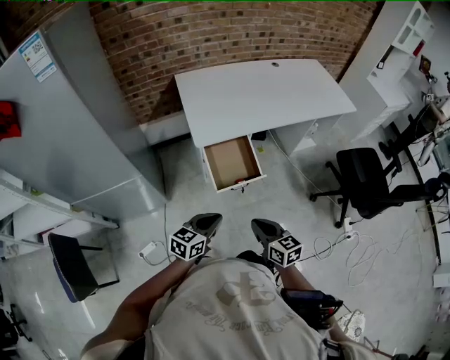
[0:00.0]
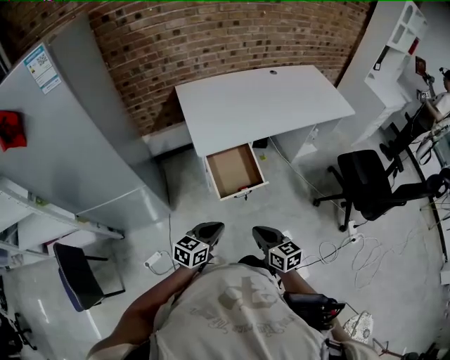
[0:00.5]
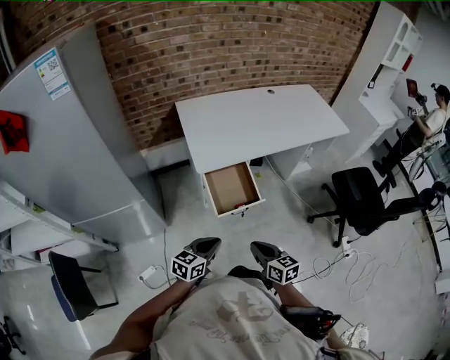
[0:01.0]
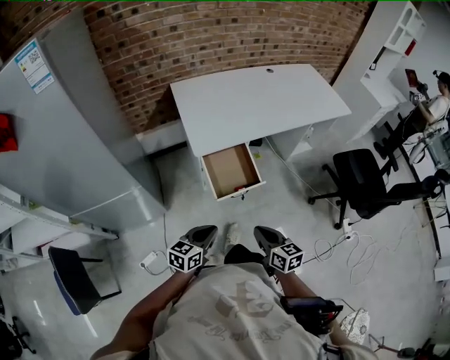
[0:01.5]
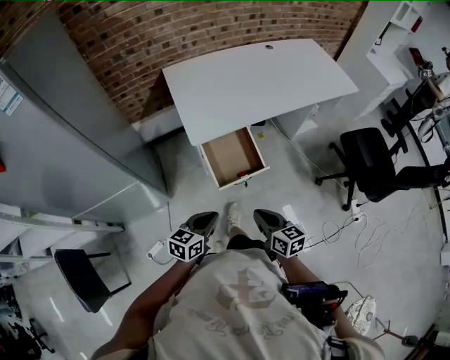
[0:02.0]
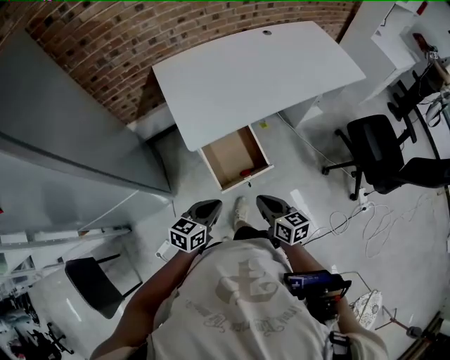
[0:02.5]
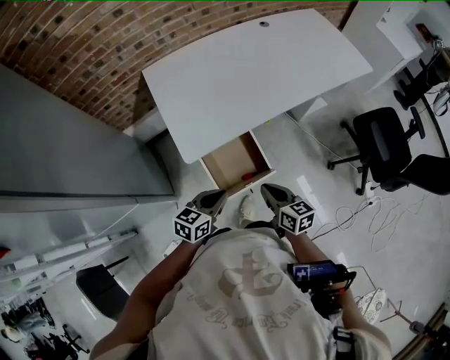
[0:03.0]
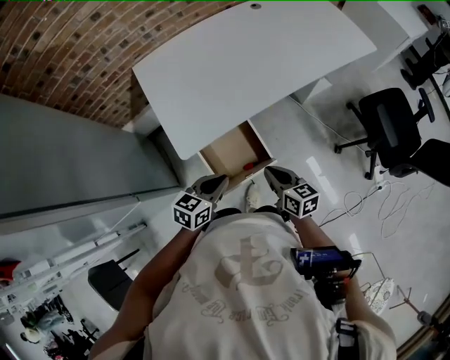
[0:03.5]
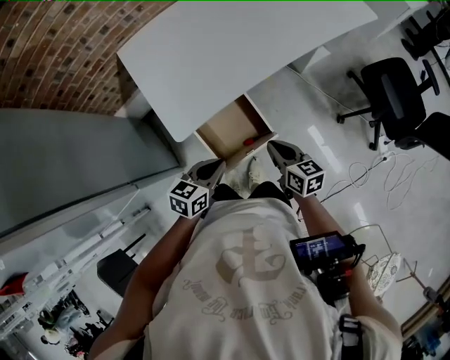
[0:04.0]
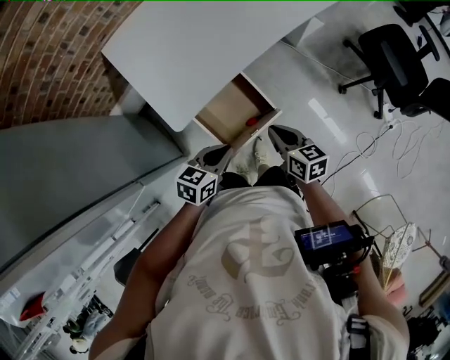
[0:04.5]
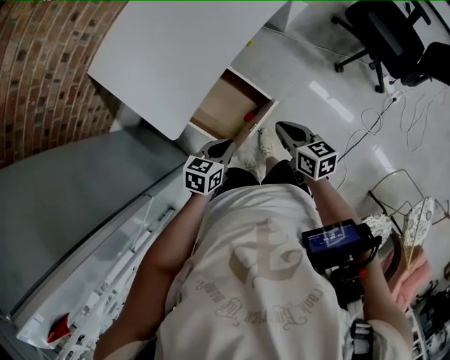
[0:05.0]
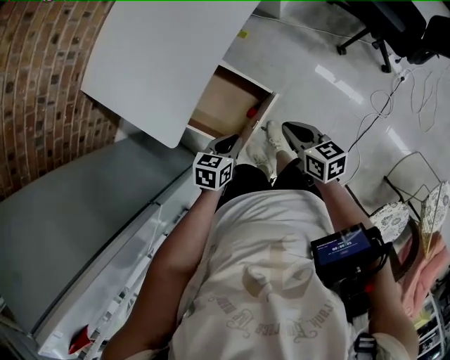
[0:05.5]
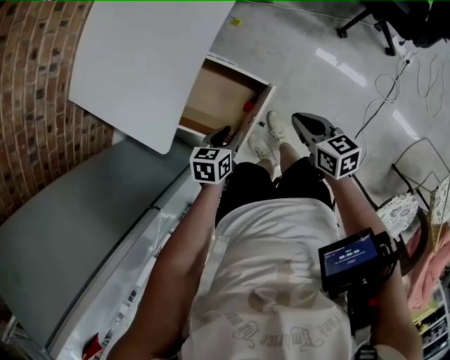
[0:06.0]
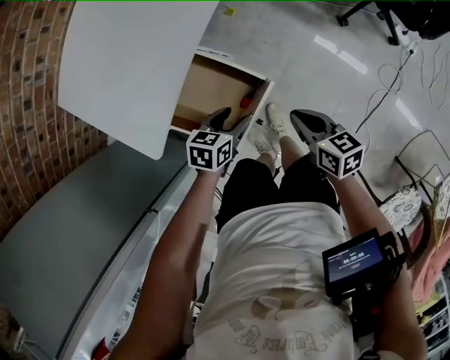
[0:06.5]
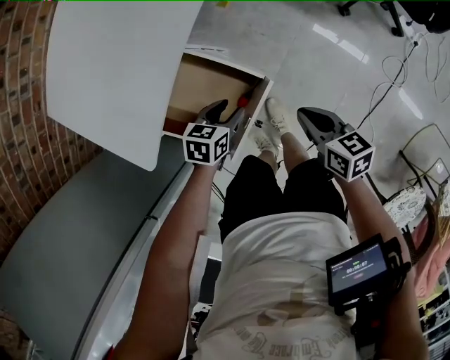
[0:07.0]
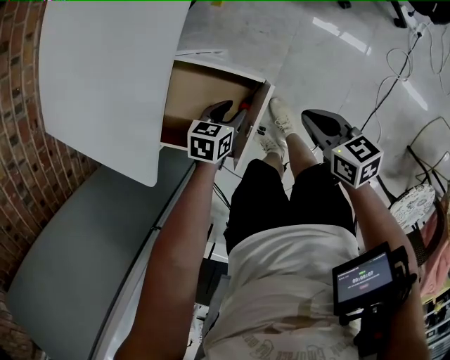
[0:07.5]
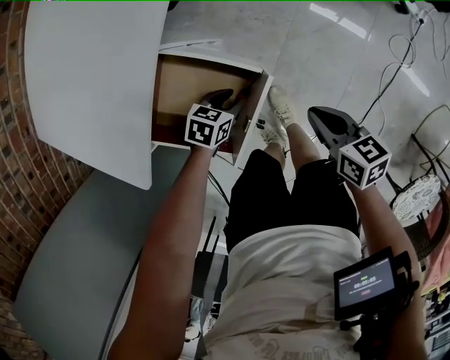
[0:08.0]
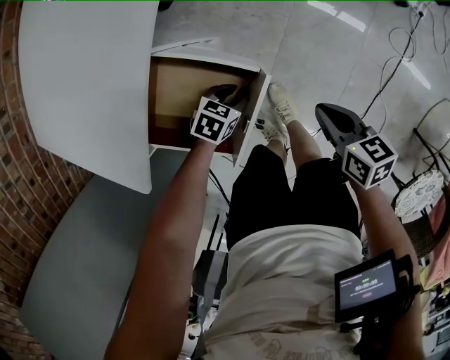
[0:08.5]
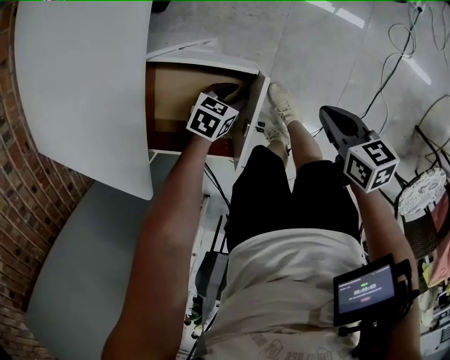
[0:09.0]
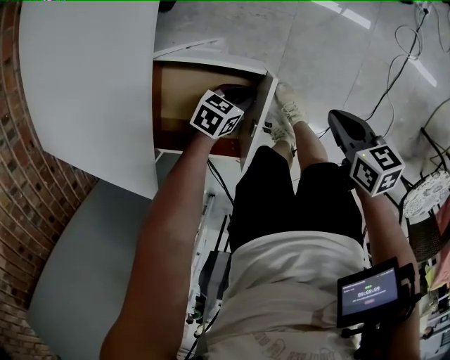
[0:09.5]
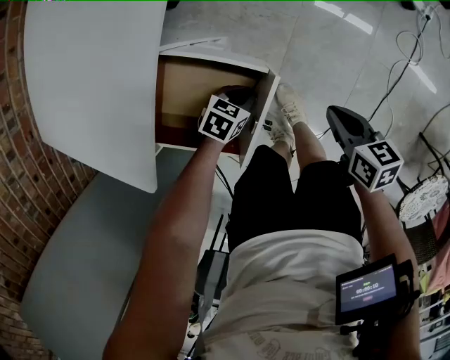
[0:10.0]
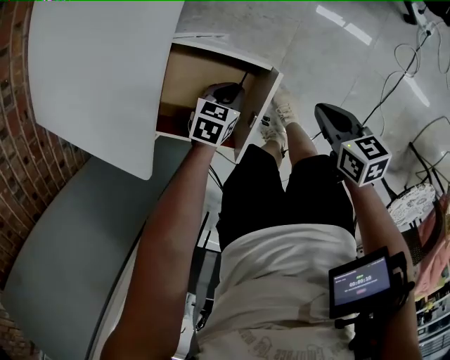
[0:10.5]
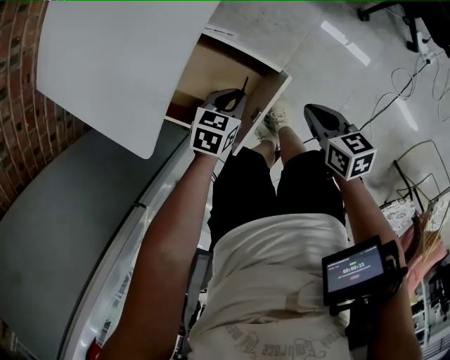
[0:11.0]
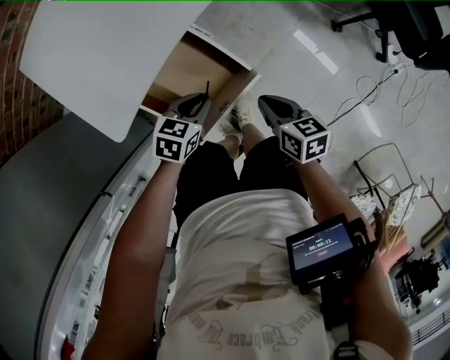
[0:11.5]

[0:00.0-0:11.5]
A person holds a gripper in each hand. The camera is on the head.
0:00.0 to 0:02.0: The right gripper moves approximately 5 cm. Meanwhile the left gripper moves approximately 5 cm.
0:02.0 to 0:04.0: Both grippers move forward, some 25 cm.
0:04.0 to 0:06.0: The left gripper goes roughly 20 cm downward, swivels approximately 30 degrees, and opens. The right gripper is displaced downward and to the right by roughly 15 cm, and turns by about 20 degrees.
0:06.0 to 0:07.5: The right gripper travels downward by approximately 10 cm, while the left gripper shifts about 15 cm downward and forward.
0:07.5 to 0:09.5: The right gripper moves about 5 cm. The left gripper is displaced downward by about 5 cm, changes its angle by roughly 30 degrees, and closes.
0:09.5 to 0:11.5: The right gripper ends up some 10 cm from where it was, and swivels approximately 20 degrees, while the left gripper moves upward, approximately 15 cm, and changes its angle by some 40 degrees.

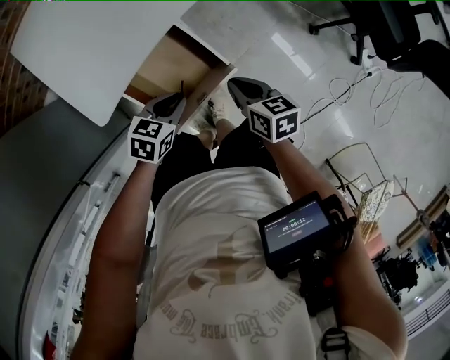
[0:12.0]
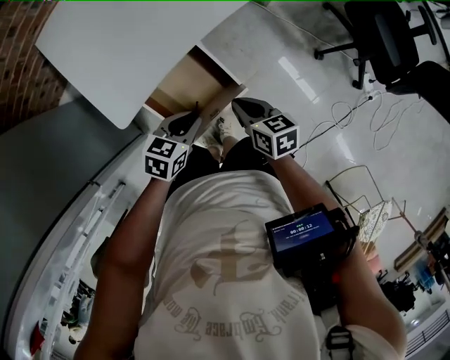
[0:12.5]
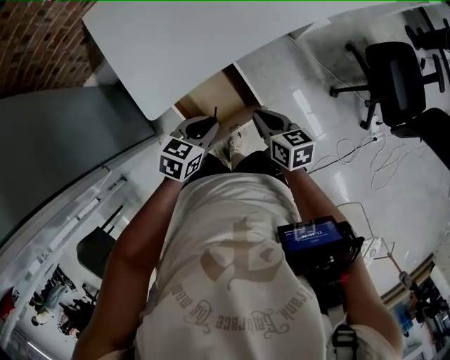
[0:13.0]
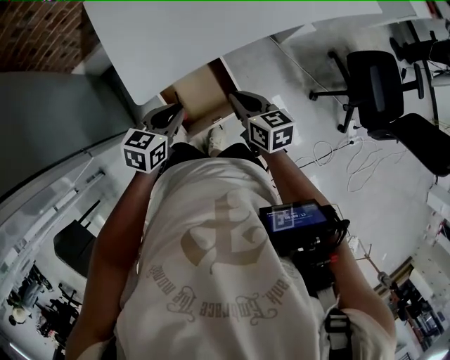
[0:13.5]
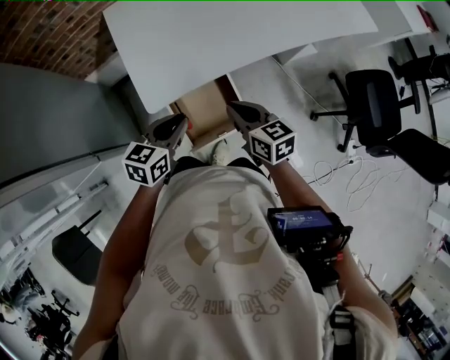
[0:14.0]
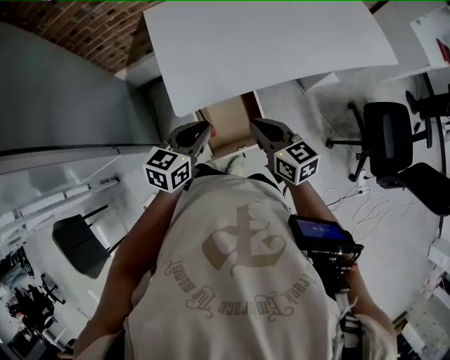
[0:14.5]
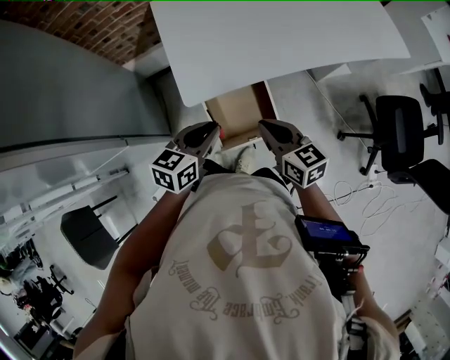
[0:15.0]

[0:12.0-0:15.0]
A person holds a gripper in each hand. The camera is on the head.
0:12.0 to 0:13.5: The left gripper shifts about 15 cm upward and to the left, and swivels approximately 30 degrees; the right gripper shifts some 10 cm to the left and upward, and changes its angle by some 20 degrees.
0:13.5 to 0:15.0: The right gripper shifts approximately 10 cm upward and to the left; the left gripper shifts about 10 cm upward.

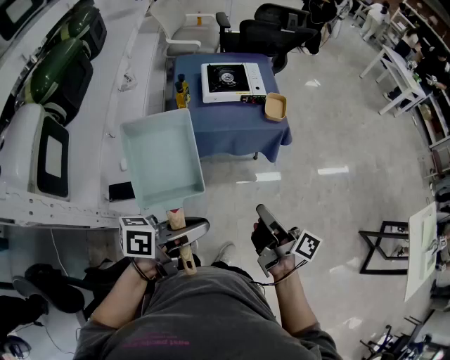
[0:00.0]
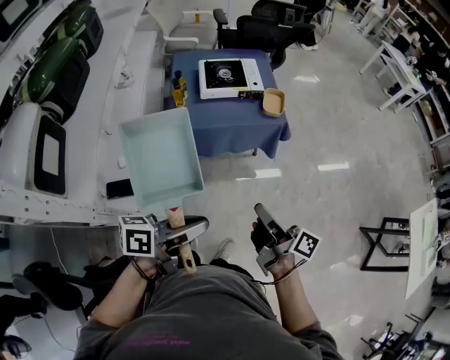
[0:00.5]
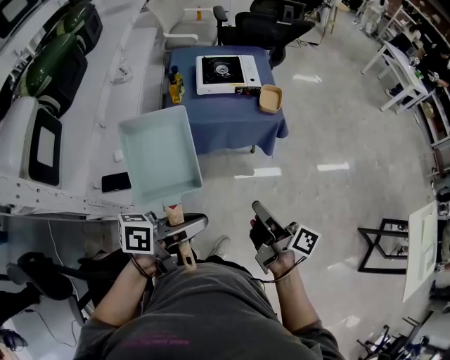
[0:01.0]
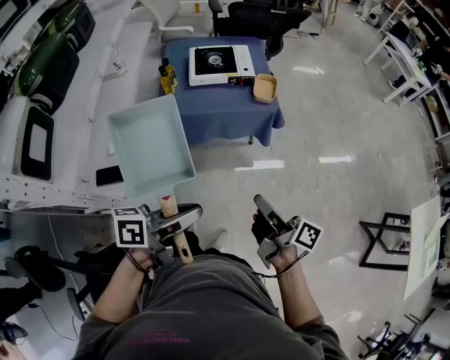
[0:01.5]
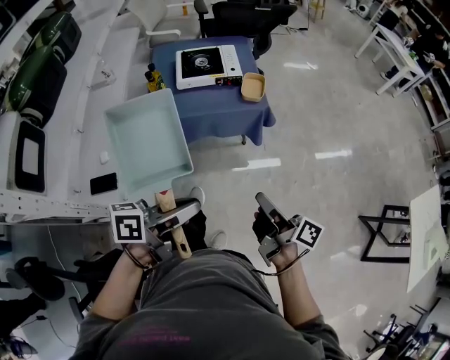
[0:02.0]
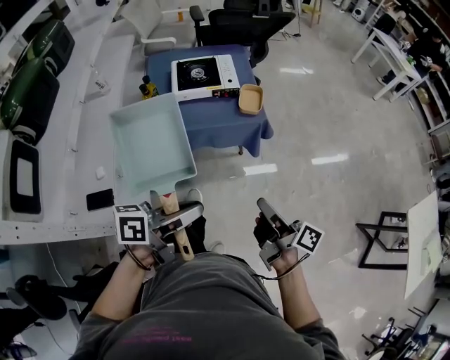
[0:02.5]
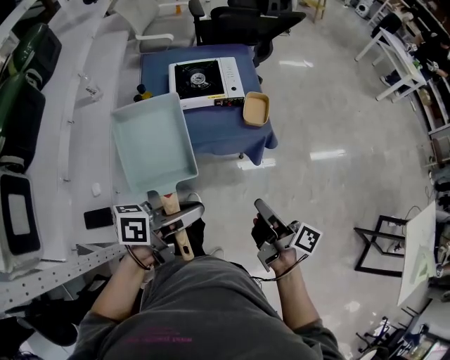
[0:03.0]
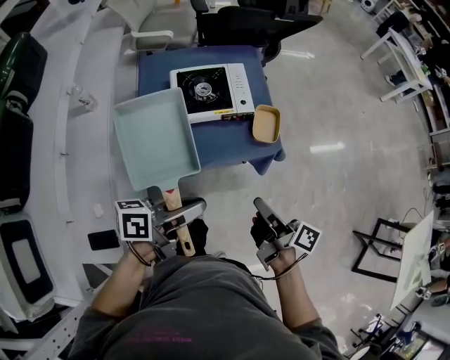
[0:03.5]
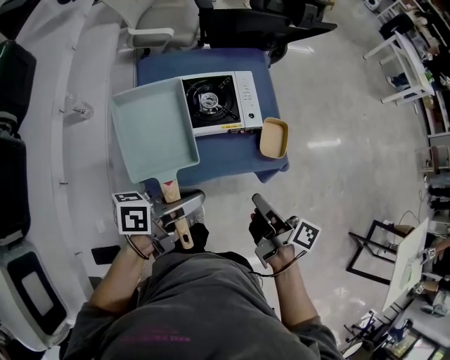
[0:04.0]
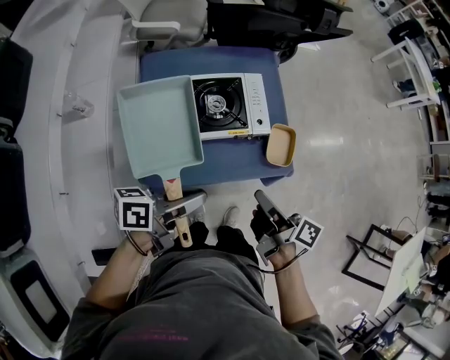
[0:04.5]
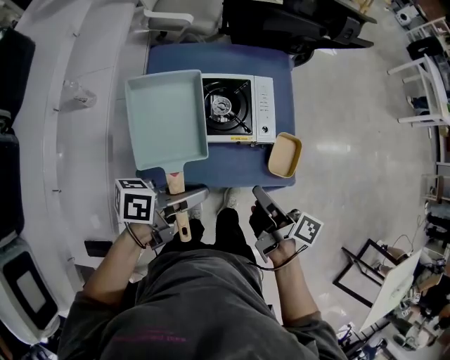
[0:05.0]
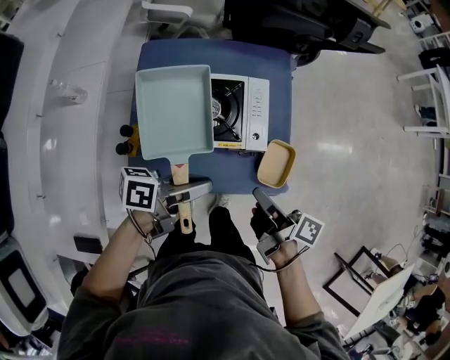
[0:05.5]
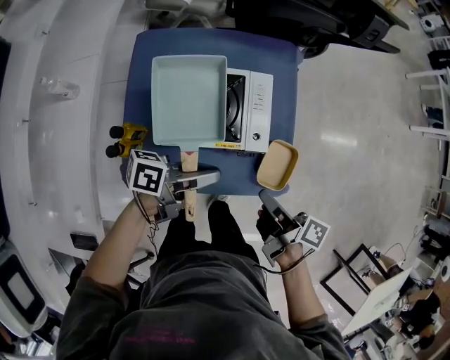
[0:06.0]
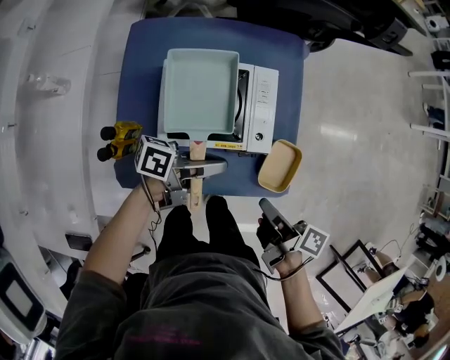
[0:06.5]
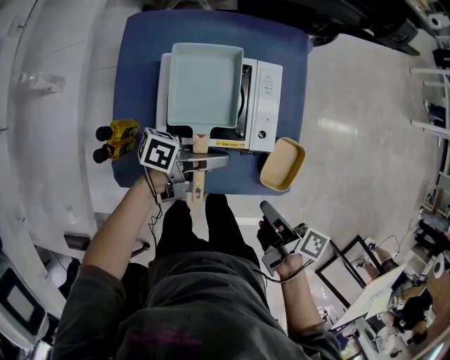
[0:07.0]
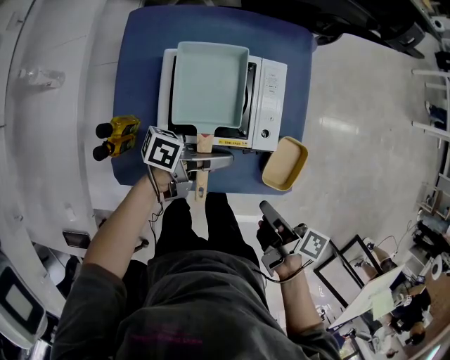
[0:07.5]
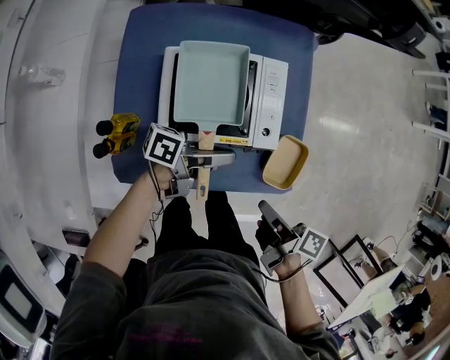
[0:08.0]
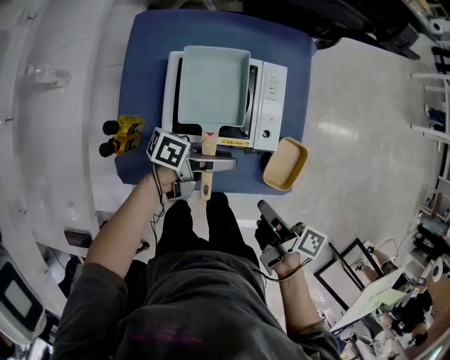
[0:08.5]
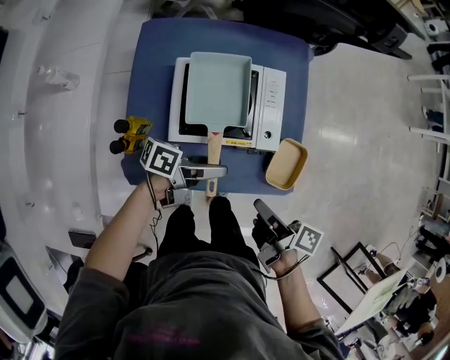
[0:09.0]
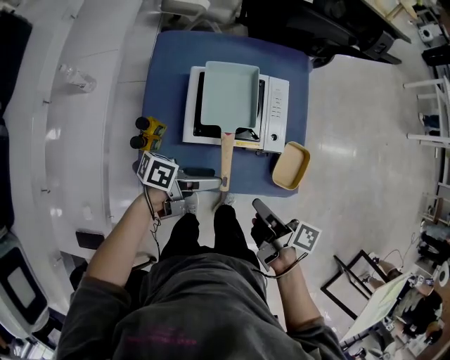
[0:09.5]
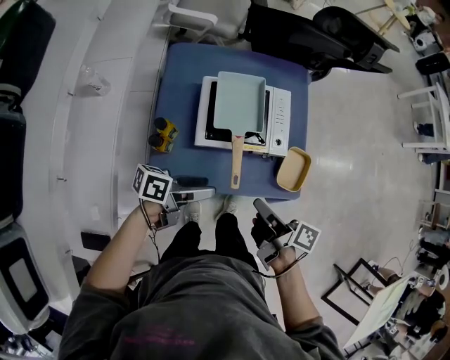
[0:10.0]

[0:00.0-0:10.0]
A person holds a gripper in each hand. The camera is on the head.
0:00.0 to 0:02.0: The left gripper shifts by roughly 10 cm.
0:02.0 to 0:04.0: The left gripper ends up approximately 40 cm from where it was.
0:04.0 to 0:06.0: The left gripper moves roughly 25 cm.
0:06.0 to 0:08.0: The left gripper heads downward, covering some 10 cm.
0:08.0 to 0:10.0: The left gripper changes place by about 20 cm, and opens its fingers.

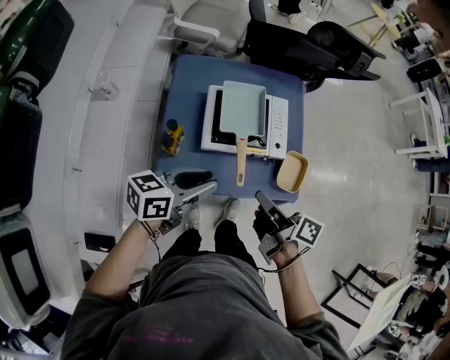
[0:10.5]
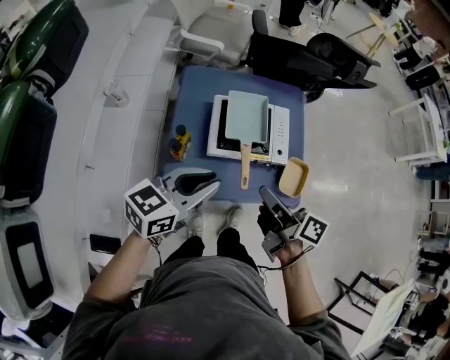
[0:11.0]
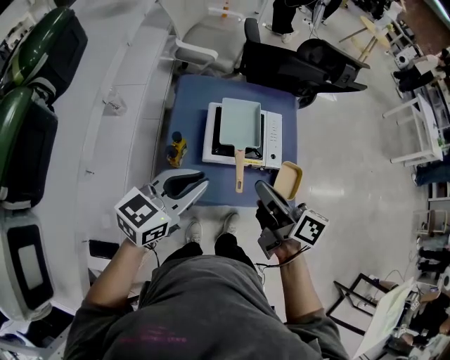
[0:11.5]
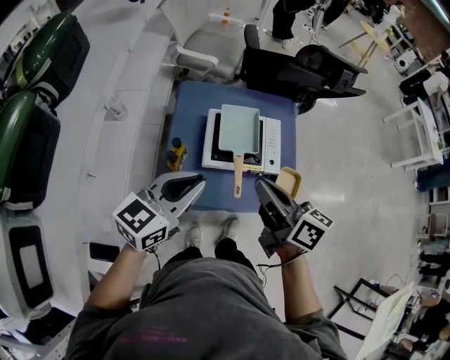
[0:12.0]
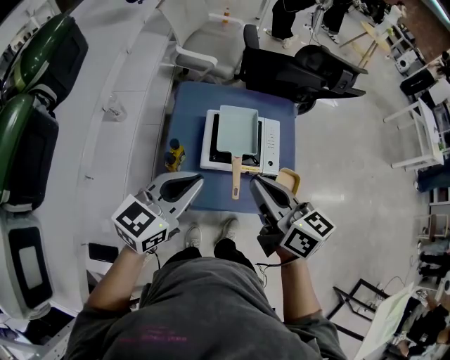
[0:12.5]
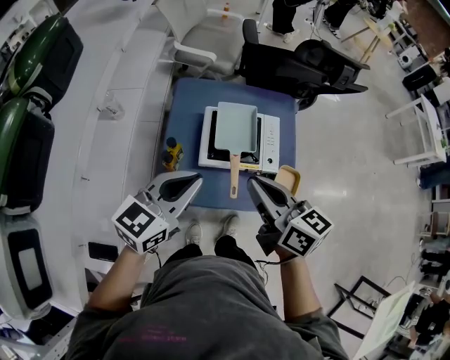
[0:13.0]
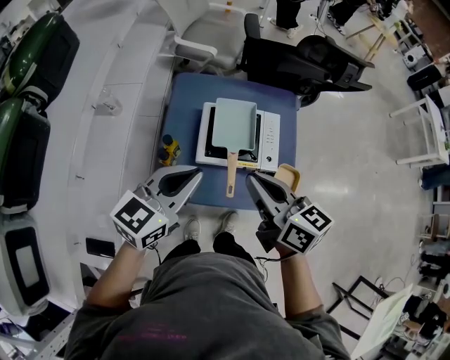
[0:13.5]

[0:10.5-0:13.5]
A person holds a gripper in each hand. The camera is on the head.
0:10.5 to 0:12.0: The left gripper travels upward by roughly 10 cm, and swivels approximately 30 degrees.
